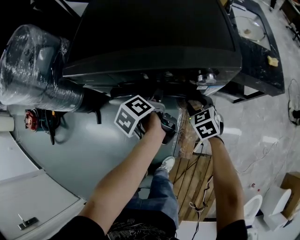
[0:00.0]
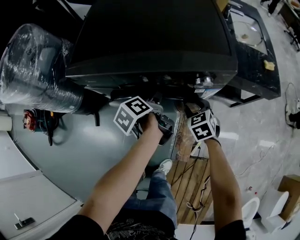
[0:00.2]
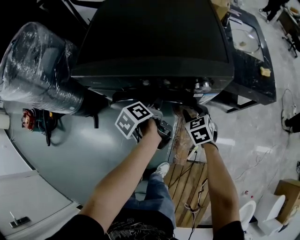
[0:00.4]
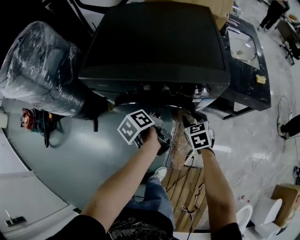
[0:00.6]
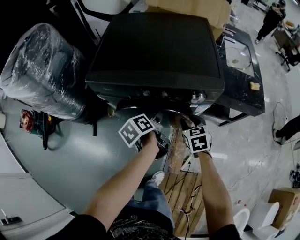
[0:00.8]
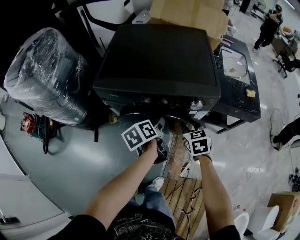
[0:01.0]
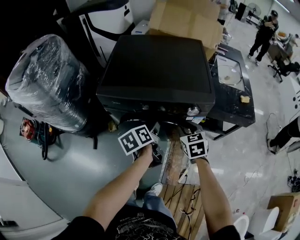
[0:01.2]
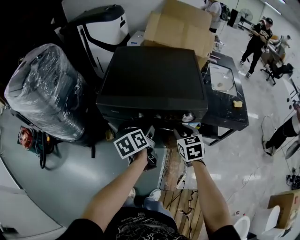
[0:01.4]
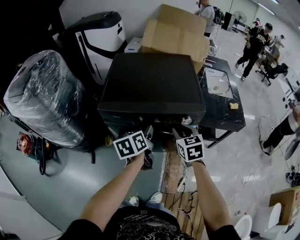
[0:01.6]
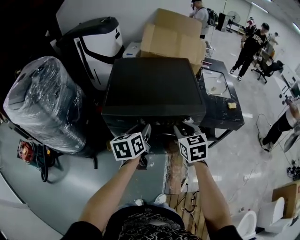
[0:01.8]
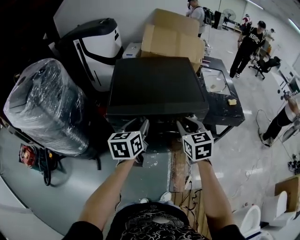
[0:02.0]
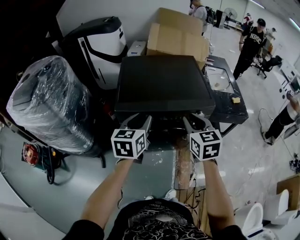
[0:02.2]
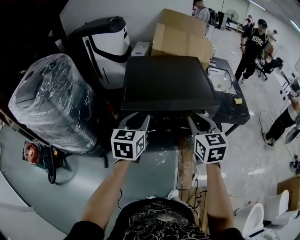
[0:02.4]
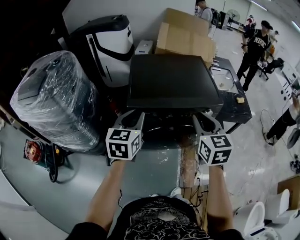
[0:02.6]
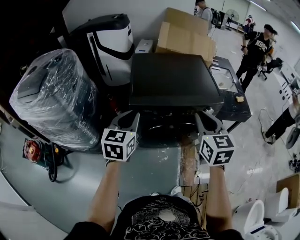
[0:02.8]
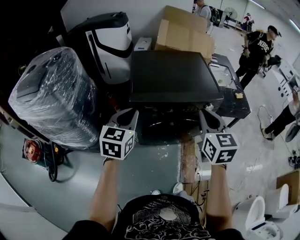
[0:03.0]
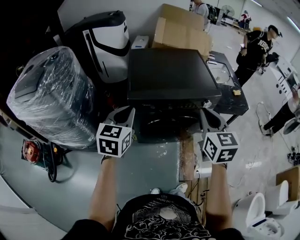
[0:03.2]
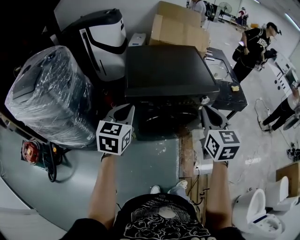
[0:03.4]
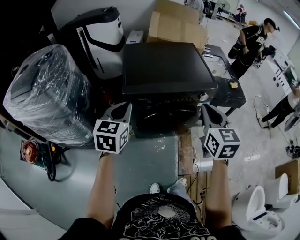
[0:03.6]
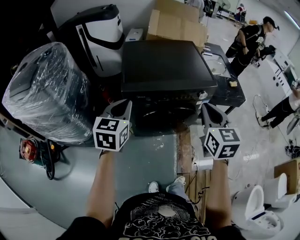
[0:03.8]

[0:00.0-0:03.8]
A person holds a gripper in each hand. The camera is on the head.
0:00.0 to 0:01.2: The right gripper goes roughly 15 cm upward, while the left gripper moves upward and backward, approximately 15 cm, and turns by some 20 degrees.
0:01.2 to 0:02.6: The grippers both shift upward and to the left by approximately 30 cm. The right gripper turns by some 30 degrees. Meanwhile the left gripper twists approximately 60 degrees clockwise, seen from behind.
0:02.6 to 0:03.8: The right gripper ends up about 5 cm from where it was.

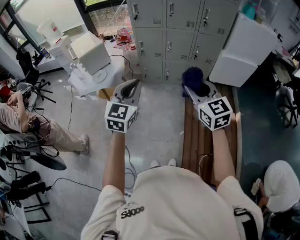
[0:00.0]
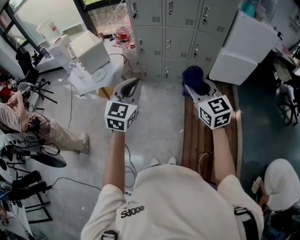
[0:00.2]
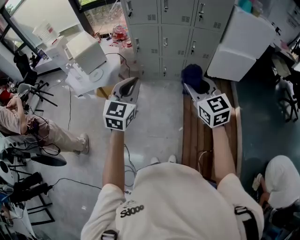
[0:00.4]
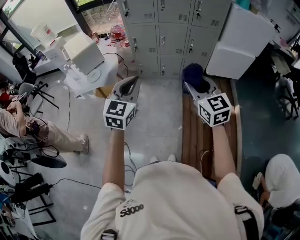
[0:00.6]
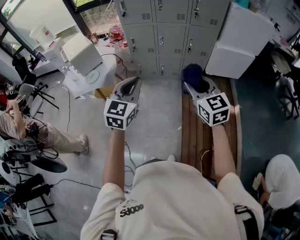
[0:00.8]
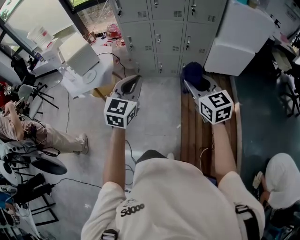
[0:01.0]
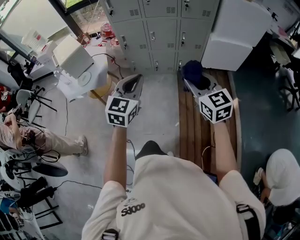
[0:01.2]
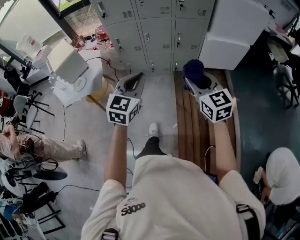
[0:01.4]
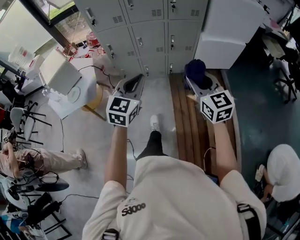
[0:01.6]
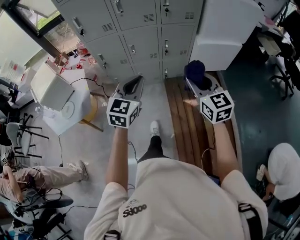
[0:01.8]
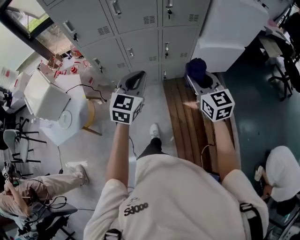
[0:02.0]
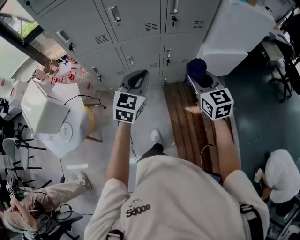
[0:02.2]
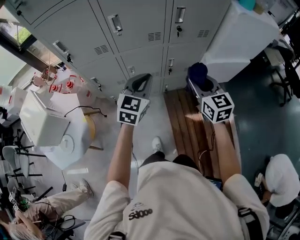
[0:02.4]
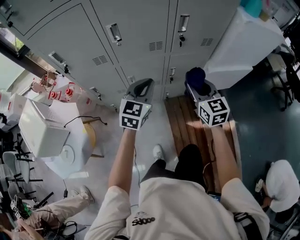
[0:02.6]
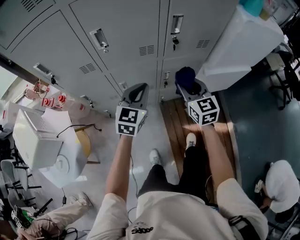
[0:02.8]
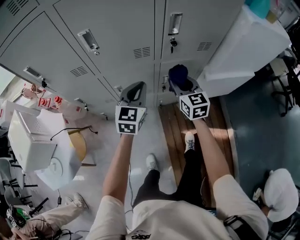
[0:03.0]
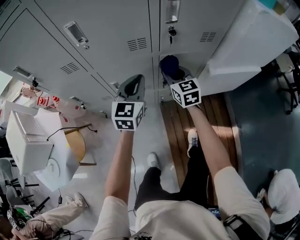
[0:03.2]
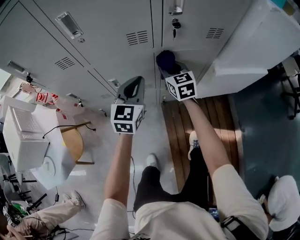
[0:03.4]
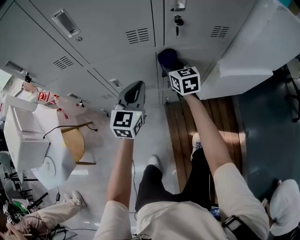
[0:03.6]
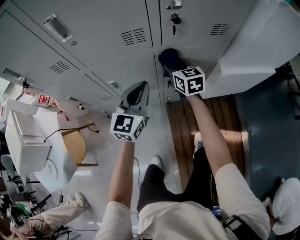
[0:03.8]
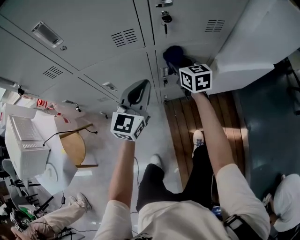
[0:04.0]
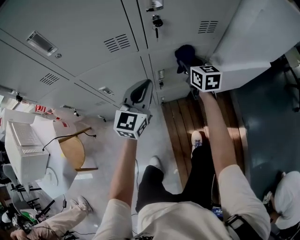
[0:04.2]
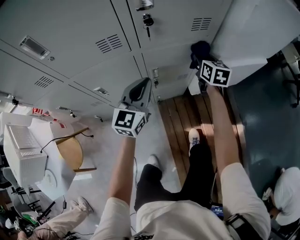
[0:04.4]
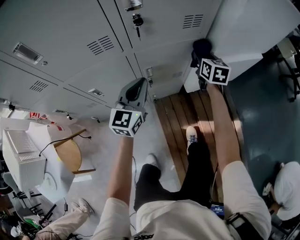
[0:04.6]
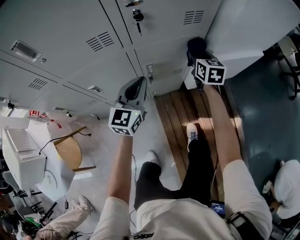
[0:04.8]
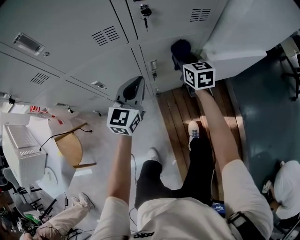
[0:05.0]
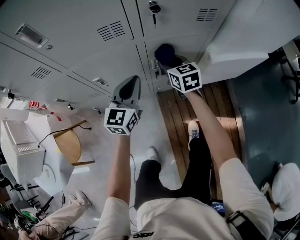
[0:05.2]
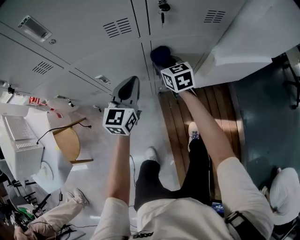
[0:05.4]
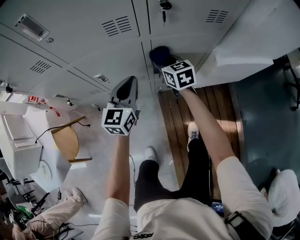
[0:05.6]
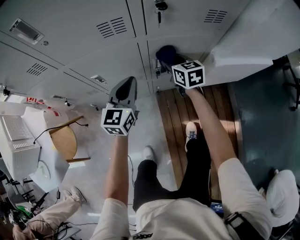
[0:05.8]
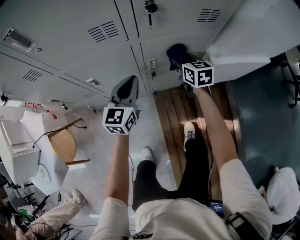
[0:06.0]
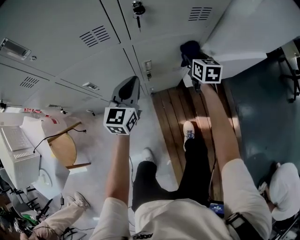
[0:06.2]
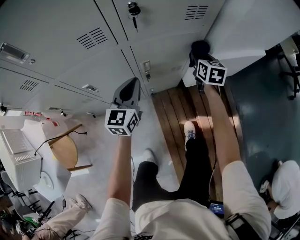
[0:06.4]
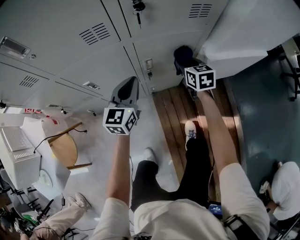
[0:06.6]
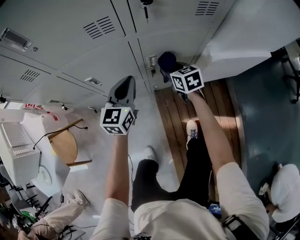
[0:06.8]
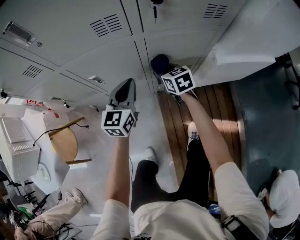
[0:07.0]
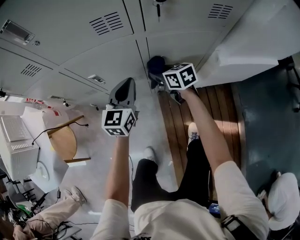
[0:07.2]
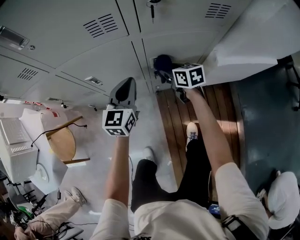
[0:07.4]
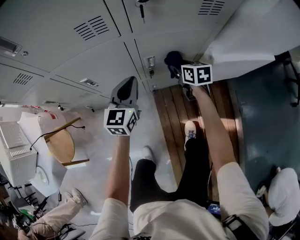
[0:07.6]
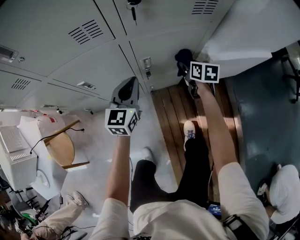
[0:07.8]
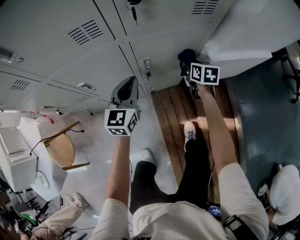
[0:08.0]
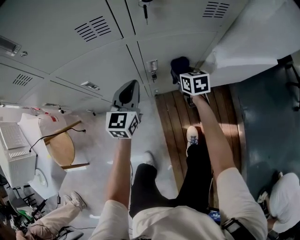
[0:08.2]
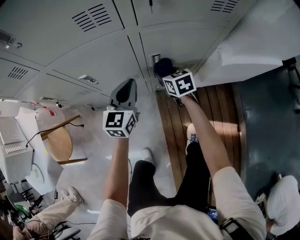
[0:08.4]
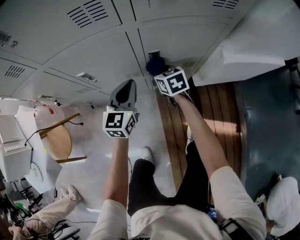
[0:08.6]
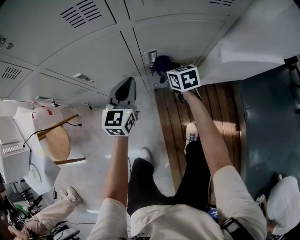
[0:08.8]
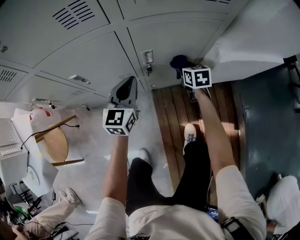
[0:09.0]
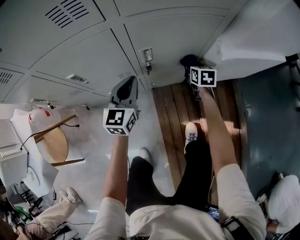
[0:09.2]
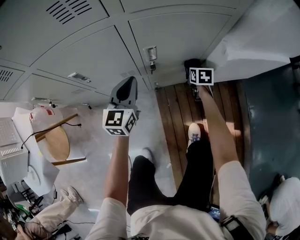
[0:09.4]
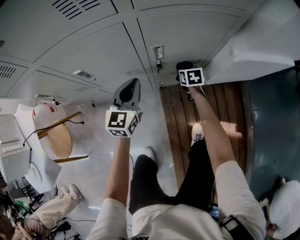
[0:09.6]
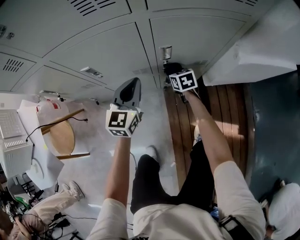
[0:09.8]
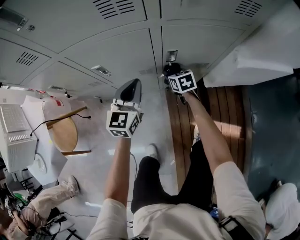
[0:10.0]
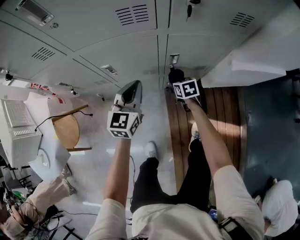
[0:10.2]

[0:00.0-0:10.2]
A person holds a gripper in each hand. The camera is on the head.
0:00.0 to 0:01.4: Both grippers travel together to the right and forward, approximately 20 cm.
0:01.4 to 0:03.0: The pair of grippers is taken forward, about 60 cm.
0:03.0 to 0:04.4: The left gripper is displaced downward, to the right and forward by about 15 cm. Meanwhile the right gripper shifts about 30 cm to the right, forward and downward, and turns by approximately 20 degrees.
0:04.4 to 0:05.8: The right gripper travels to the left by roughly 15 cm, and swivels about 20 degrees. Meanwhile the left gripper shifts approximately 10 cm to the left and downward.
0:05.8 to 0:07.2: The right gripper moves downward, about 5 cm, and turns by approximately 20 degrees.
0:07.2 to 0:08.8: The right gripper goes left and right, about 20 cm each way, reversing 2 times, while the left gripper travels downward by approximately 5 cm.
0:08.8 to 0:10.2: The right gripper heads backward, covering approximately 5 cm, and goes to the right and returns, approximately 15 cm each way. Meanwhile the left gripper moves to the left and upward, about 10 cm.

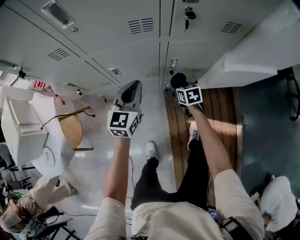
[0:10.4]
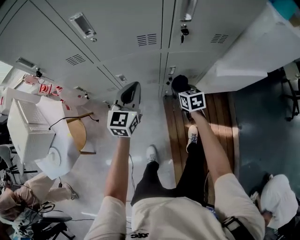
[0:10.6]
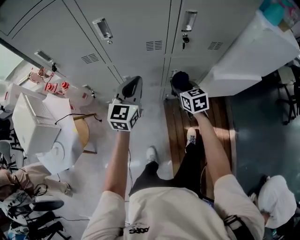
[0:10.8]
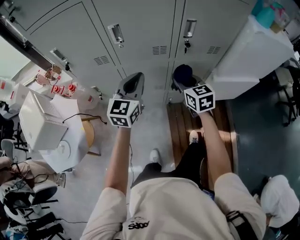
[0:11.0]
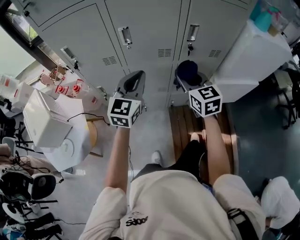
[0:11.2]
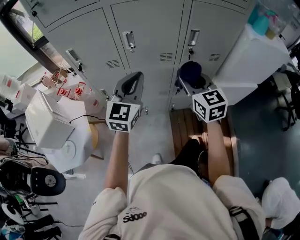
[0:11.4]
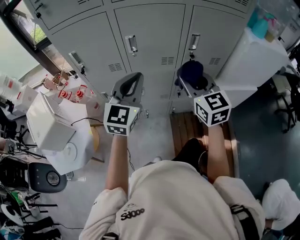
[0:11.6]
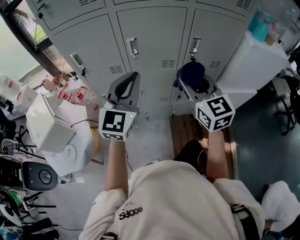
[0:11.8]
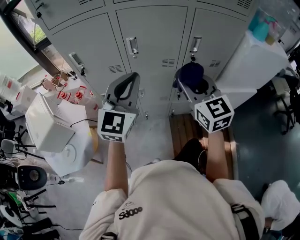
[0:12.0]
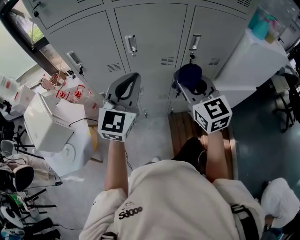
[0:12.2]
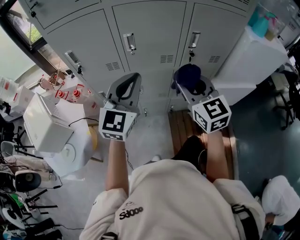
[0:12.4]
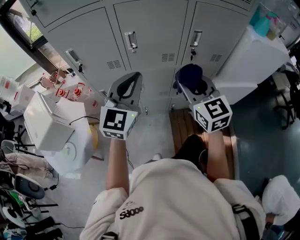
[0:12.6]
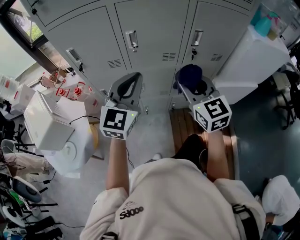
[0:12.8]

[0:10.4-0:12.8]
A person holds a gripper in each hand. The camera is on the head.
0:10.4 to 0:11.6: The right gripper goes roughly 50 cm upward, and points its fingers roughly 40 degrees further upward. The left gripper travels upward by about 35 cm, and changes its angle by roughly 20 degrees.
0:11.6 to 0:12.8: The grippers stay close to where they were, moving slightly.

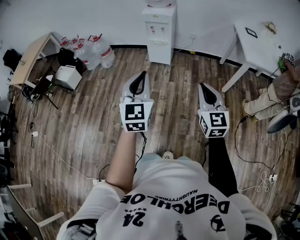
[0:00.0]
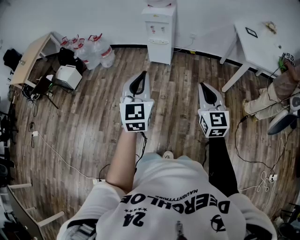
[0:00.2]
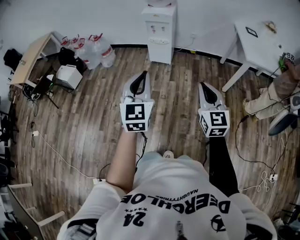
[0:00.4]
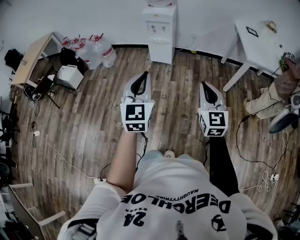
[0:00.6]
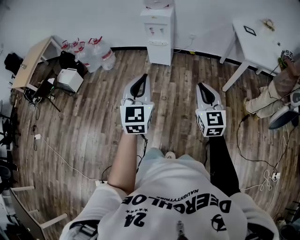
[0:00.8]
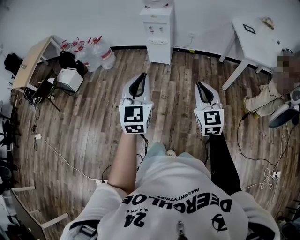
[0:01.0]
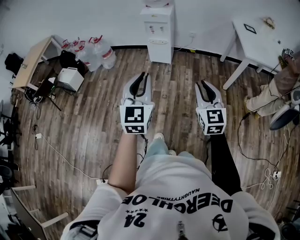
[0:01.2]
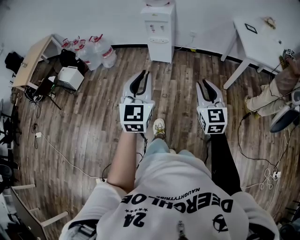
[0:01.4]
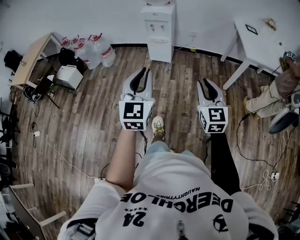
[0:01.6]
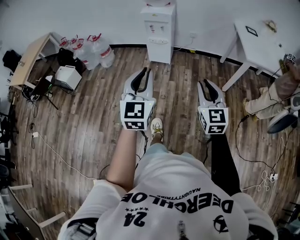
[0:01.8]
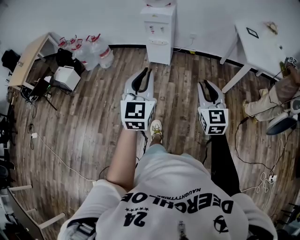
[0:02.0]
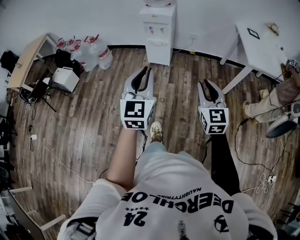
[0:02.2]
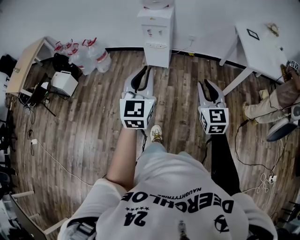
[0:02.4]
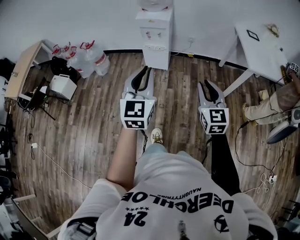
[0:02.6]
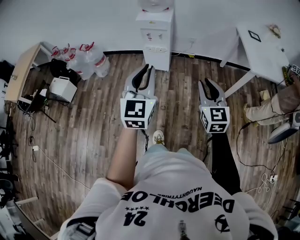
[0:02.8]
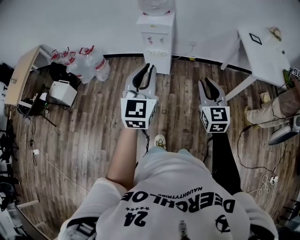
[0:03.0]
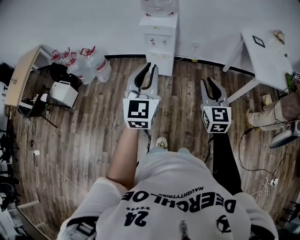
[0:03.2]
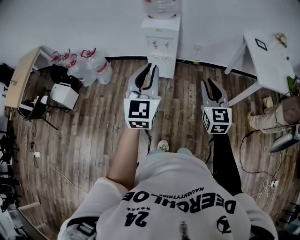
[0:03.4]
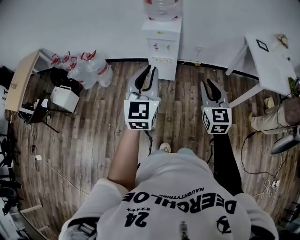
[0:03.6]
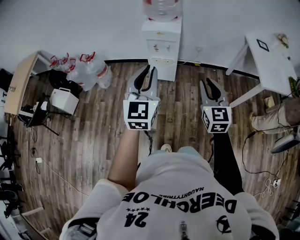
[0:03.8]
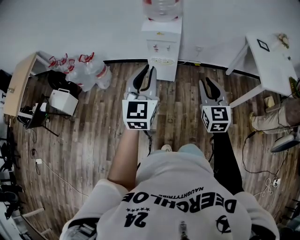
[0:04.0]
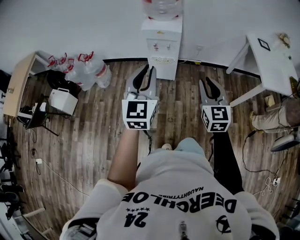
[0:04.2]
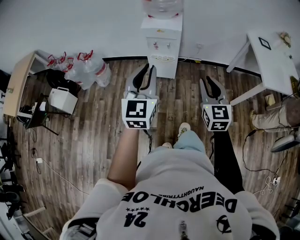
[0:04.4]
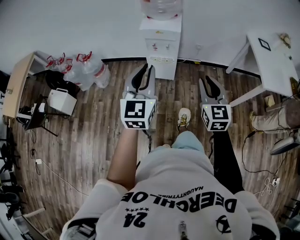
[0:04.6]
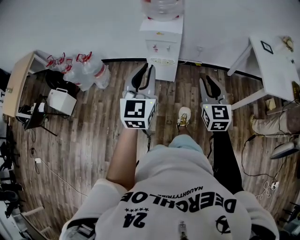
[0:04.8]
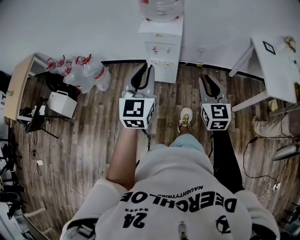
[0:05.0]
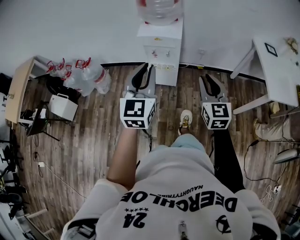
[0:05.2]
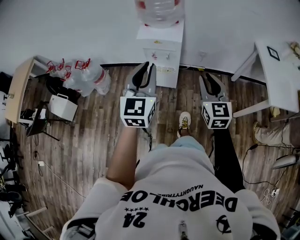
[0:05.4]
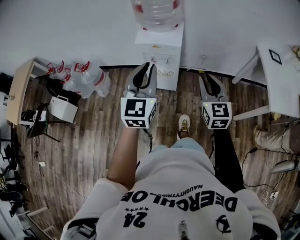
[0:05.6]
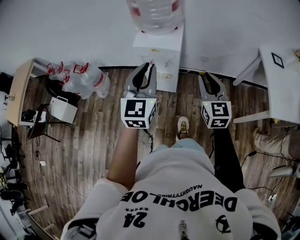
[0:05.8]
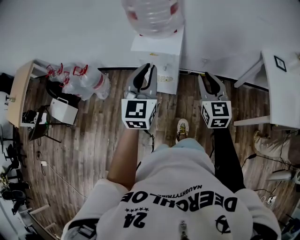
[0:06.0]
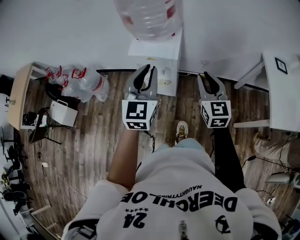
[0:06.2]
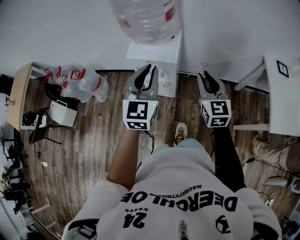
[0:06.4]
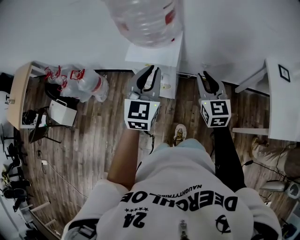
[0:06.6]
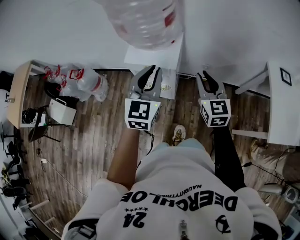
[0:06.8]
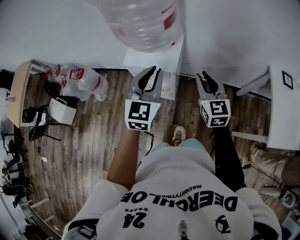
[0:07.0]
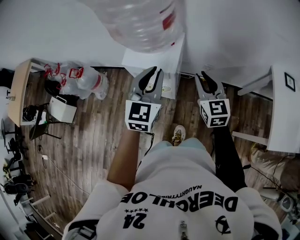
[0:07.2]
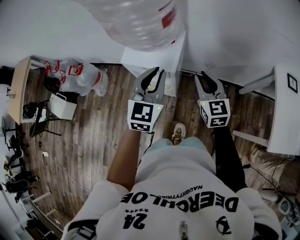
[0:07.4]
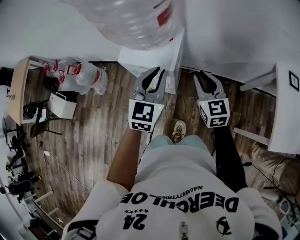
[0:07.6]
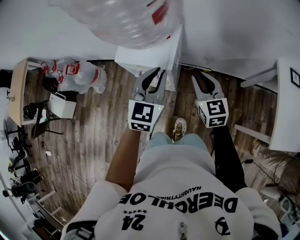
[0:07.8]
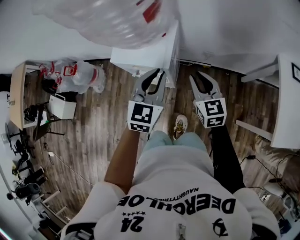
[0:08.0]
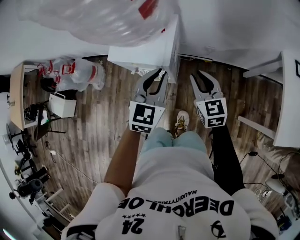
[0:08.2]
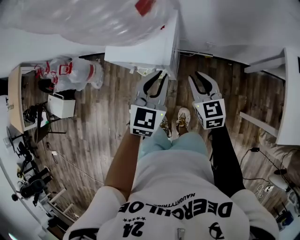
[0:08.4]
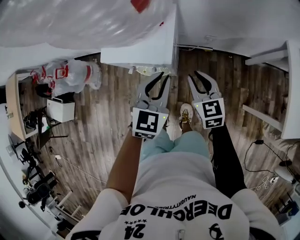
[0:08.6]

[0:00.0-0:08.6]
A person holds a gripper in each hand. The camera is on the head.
0:00.0 to 0:01.4: The grippers make only small movements.
0:01.4 to 0:02.8: The two grippers go roughly 20 cm forward.
0:02.8 to 0:04.4: Both grippers move forward and to the left, approximately 20 cm.
0:04.4 to 0:05.8: The grippers both shift forward by approximately 25 cm.
0:05.8 to 0:07.2: The right gripper heads forward, covering approximately 20 cm, while the left gripper shifts roughly 20 cm forward and to the right.
0:07.2 to 0:08.6: Both grippers move downward, about 15 cm.
